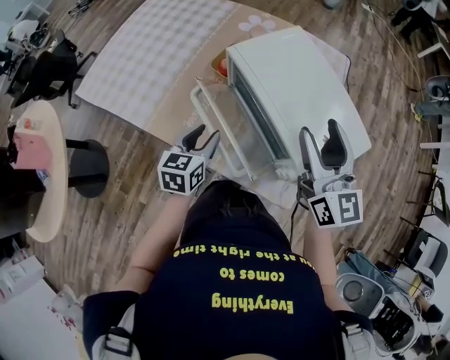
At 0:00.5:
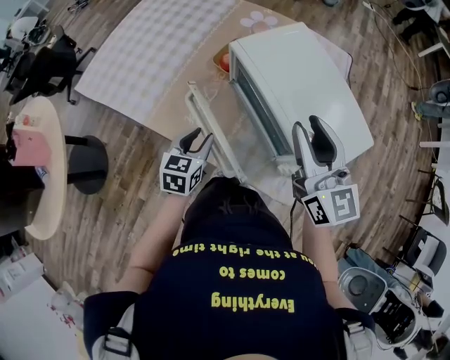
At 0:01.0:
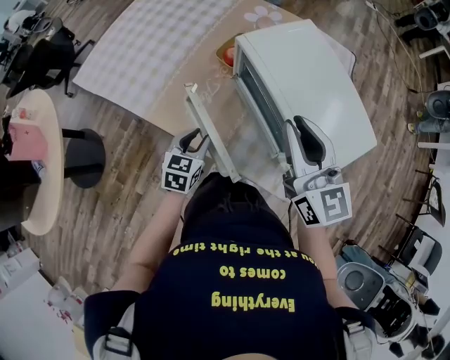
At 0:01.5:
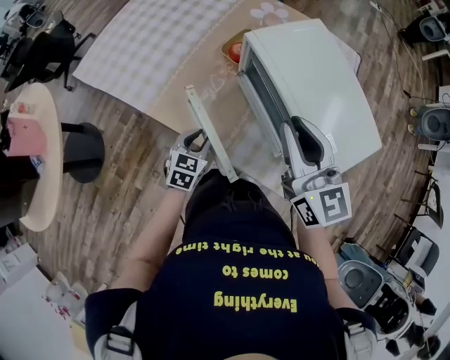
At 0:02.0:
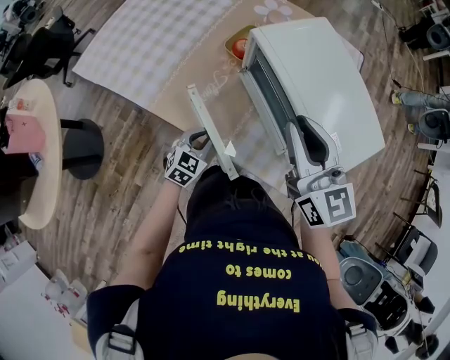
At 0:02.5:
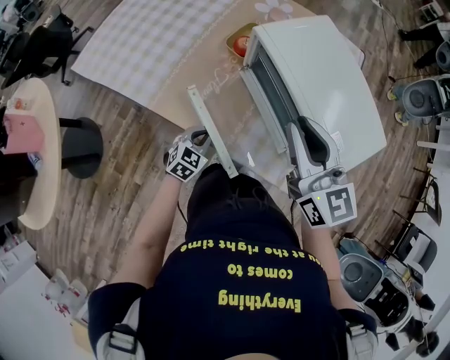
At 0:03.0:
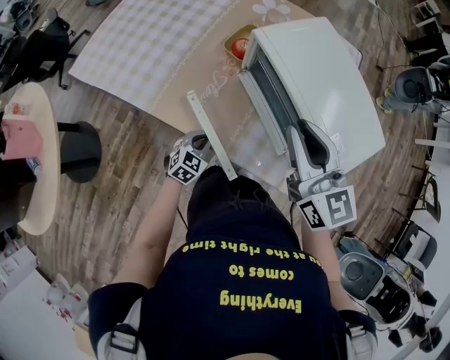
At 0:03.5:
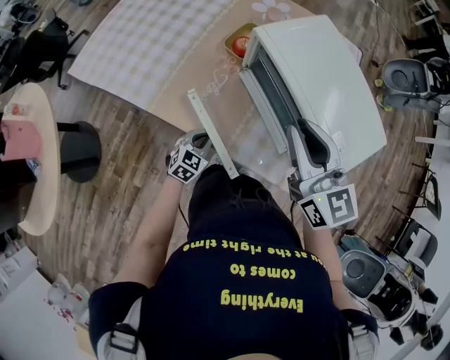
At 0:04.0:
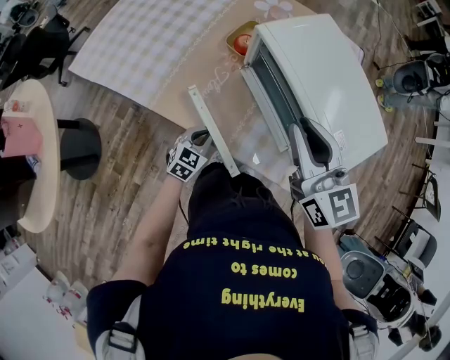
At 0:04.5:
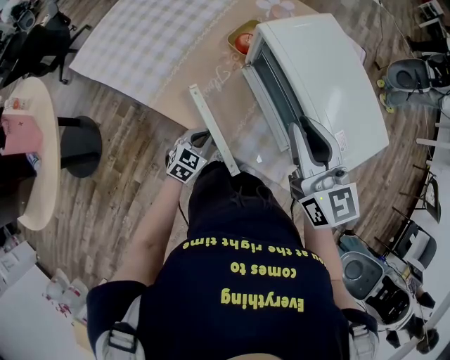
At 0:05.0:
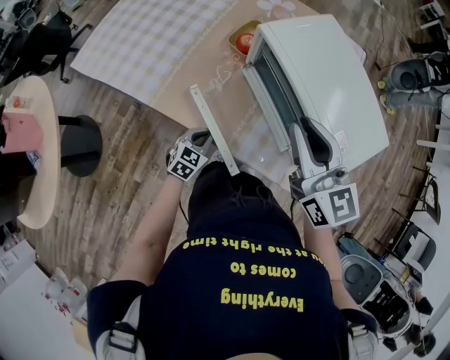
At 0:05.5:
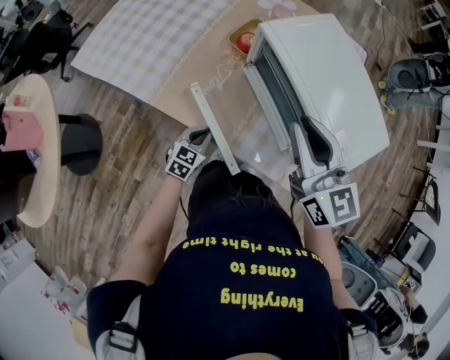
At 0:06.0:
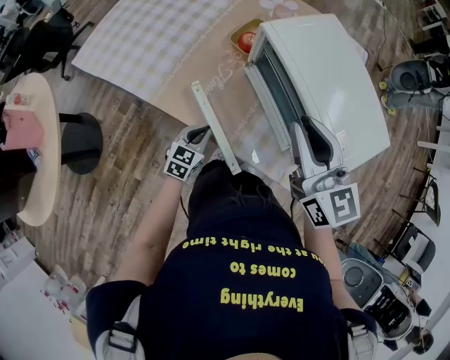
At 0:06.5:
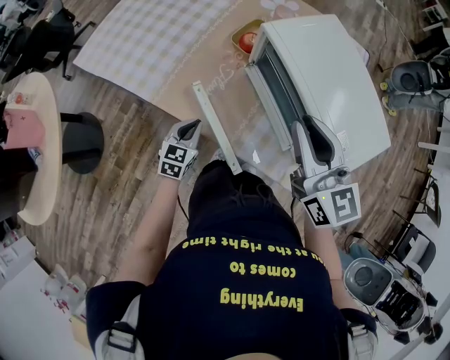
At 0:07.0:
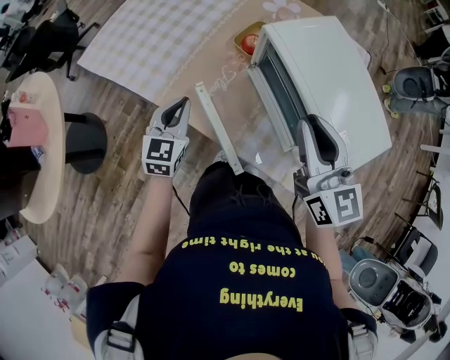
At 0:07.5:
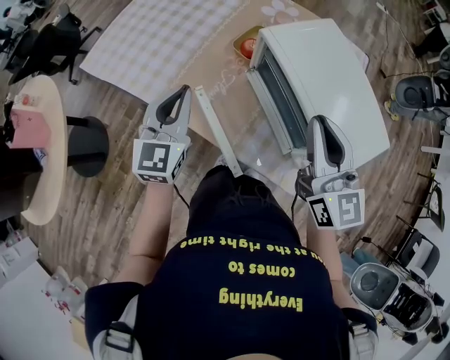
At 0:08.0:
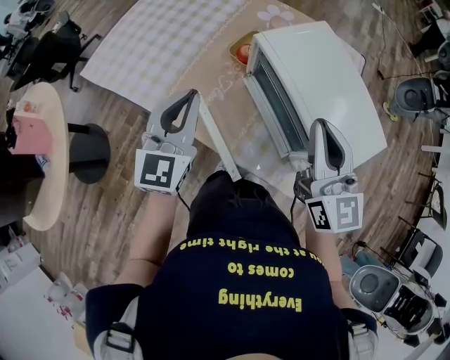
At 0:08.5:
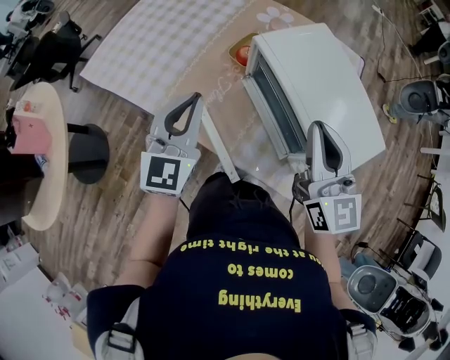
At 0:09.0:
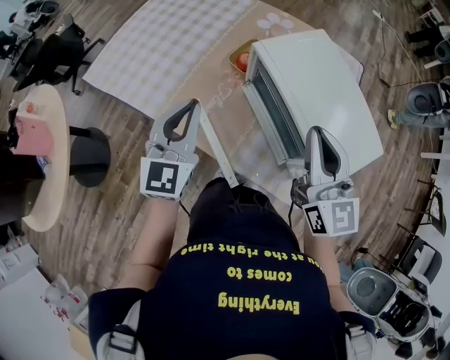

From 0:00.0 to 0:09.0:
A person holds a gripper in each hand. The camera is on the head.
From 0:00.0 to 0:02.0: The right gripper is displaced to the left by roughly 10 cm, and closes. The left gripper moves downward, roughly 15 cm, changes its angle by about 30 degrees, and closes up.
From 0:02.0 to 0:04.5: The grippers stay close to where they were, moving slightly.
From 0:04.5 to 0:07.0: The left gripper shifts approximately 20 cm upward and to the left, and swivels roughly 30 degrees.
From 0:07.0 to 0:09.0: The left gripper goes about 15 cm upward and to the right.

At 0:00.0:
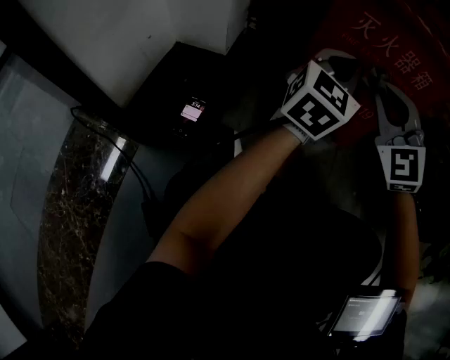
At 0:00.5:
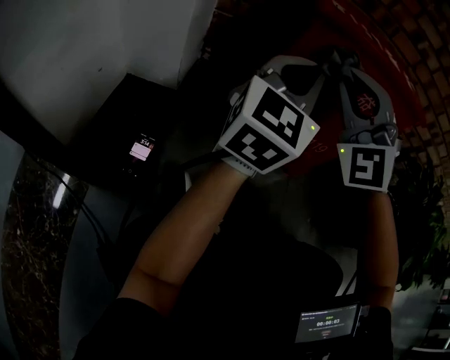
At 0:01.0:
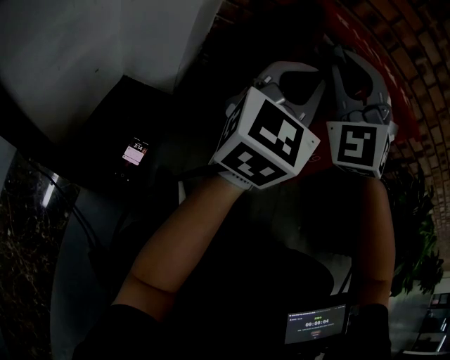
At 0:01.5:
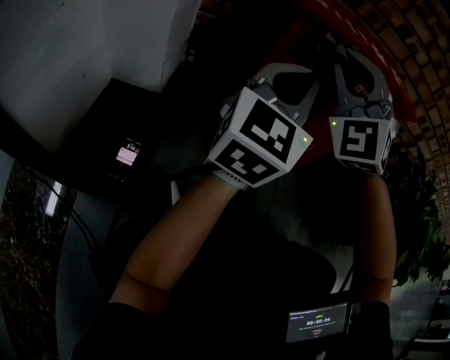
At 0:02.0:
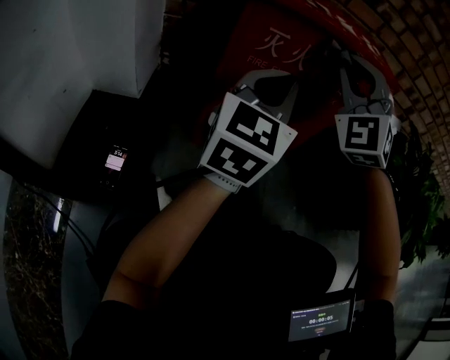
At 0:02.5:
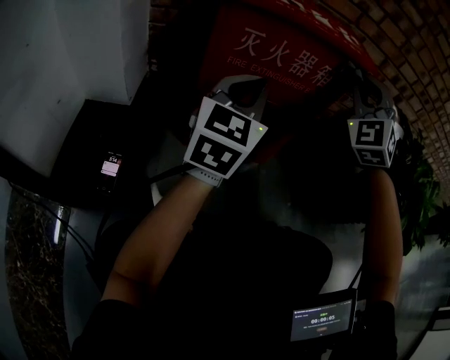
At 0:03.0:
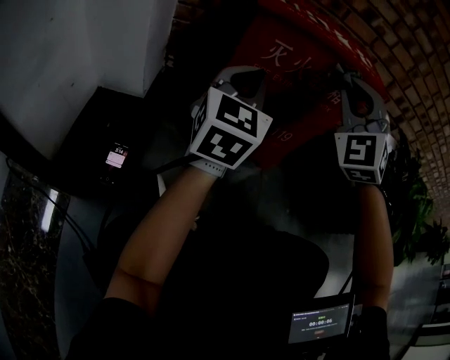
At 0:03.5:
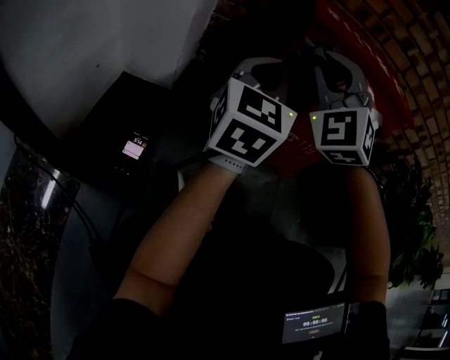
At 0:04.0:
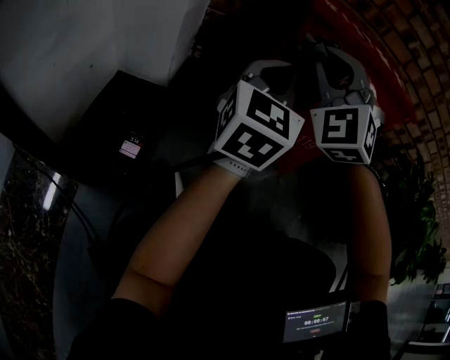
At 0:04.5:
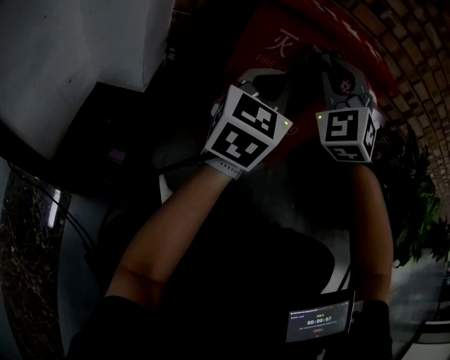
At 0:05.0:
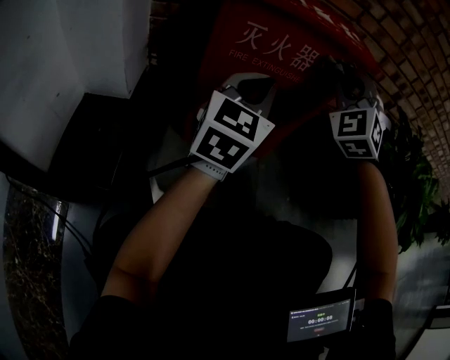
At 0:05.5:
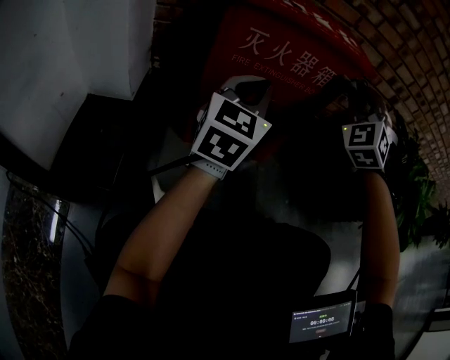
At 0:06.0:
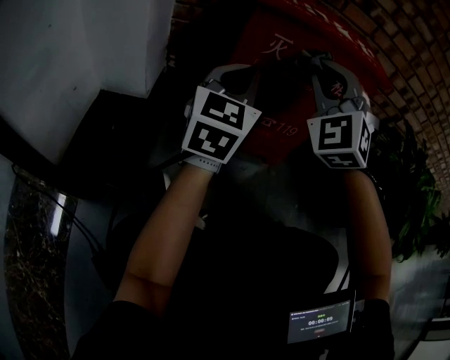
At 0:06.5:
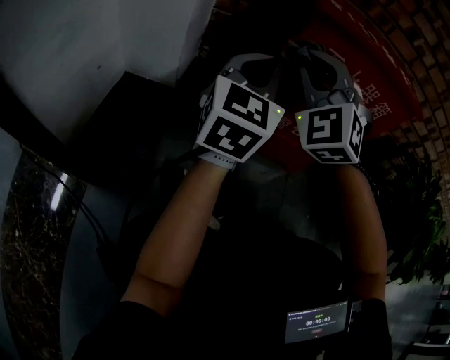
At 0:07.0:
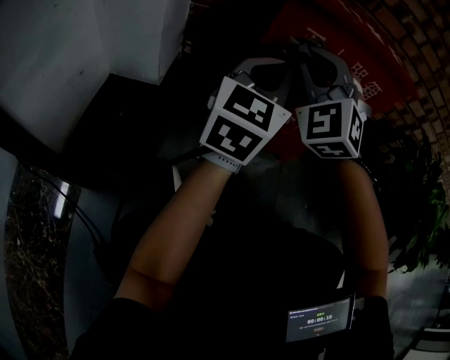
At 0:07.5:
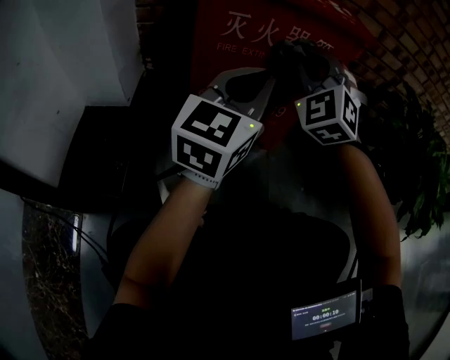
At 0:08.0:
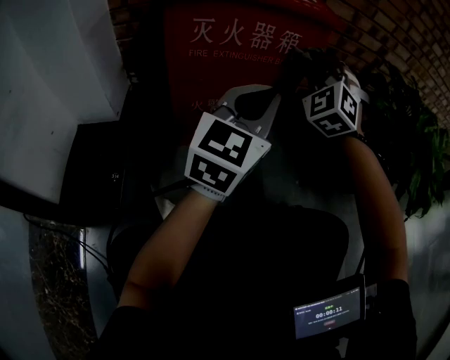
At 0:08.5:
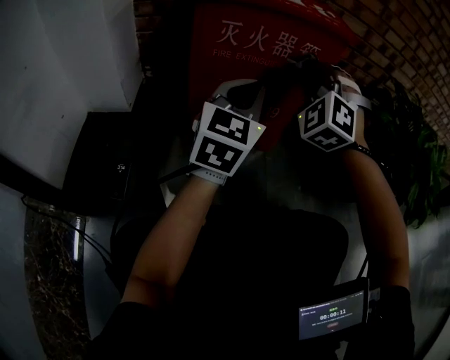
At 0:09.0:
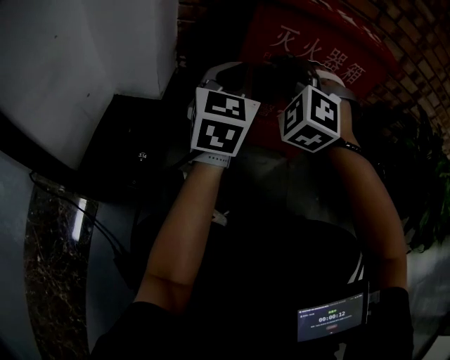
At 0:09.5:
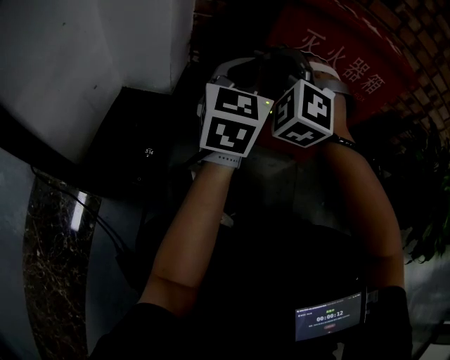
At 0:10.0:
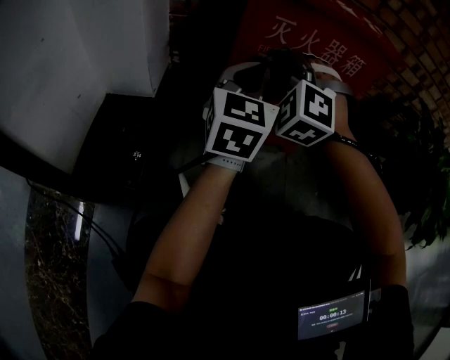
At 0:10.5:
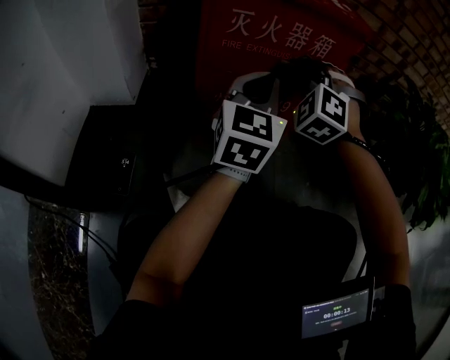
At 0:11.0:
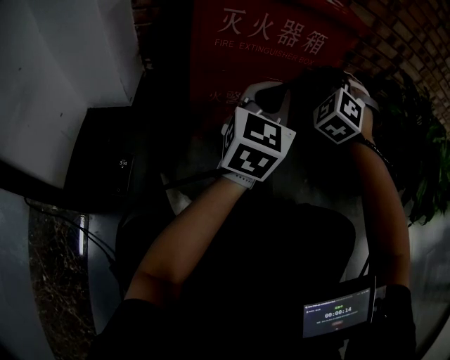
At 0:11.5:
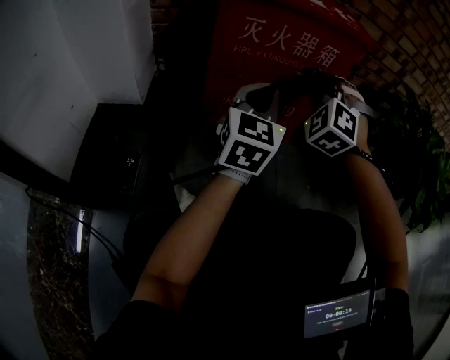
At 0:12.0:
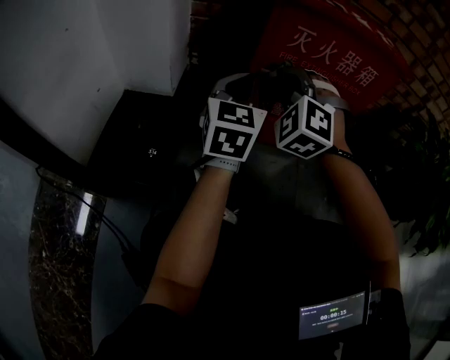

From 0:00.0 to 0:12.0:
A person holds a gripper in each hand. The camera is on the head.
From 0:02.0 to 0:04.0: The left gripper ends up approximately 10 cm from where it was.
From 0:06.0 to 0:08.0: The left gripper shifts by some 20 cm, and rotates about 20 degrees.
From 0:08.0 to 0:10.0: The left gripper ends up approximately 15 cm from where it was, and swivels some 20 degrees.

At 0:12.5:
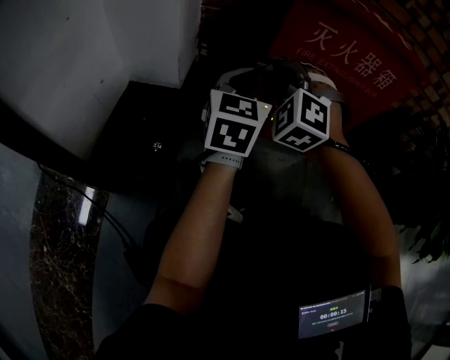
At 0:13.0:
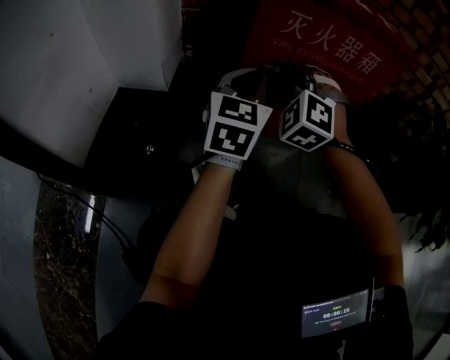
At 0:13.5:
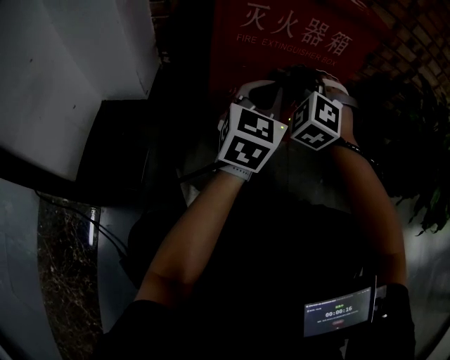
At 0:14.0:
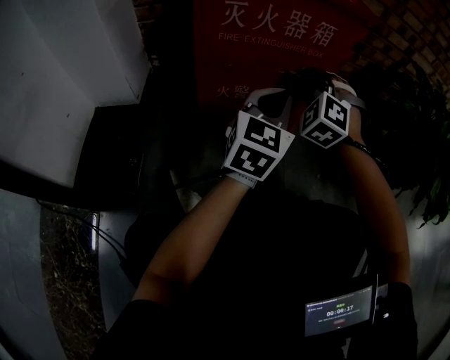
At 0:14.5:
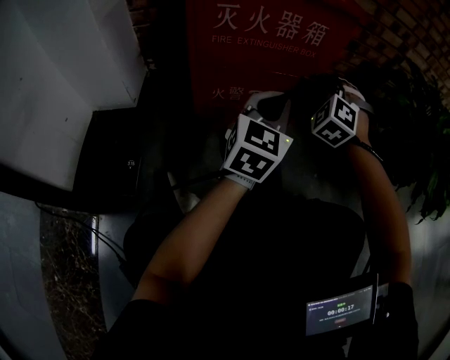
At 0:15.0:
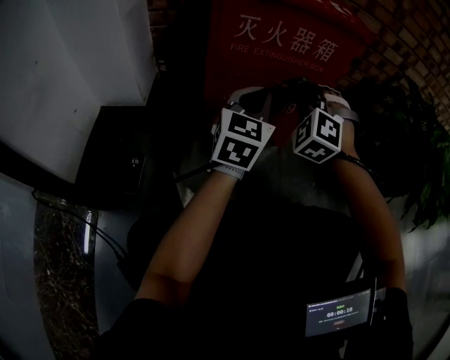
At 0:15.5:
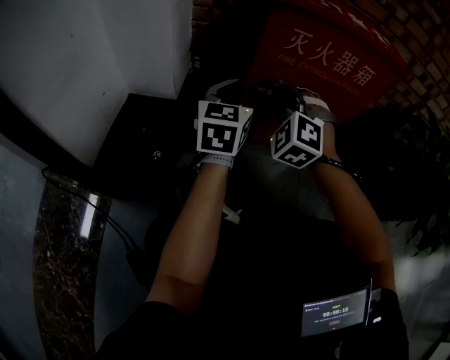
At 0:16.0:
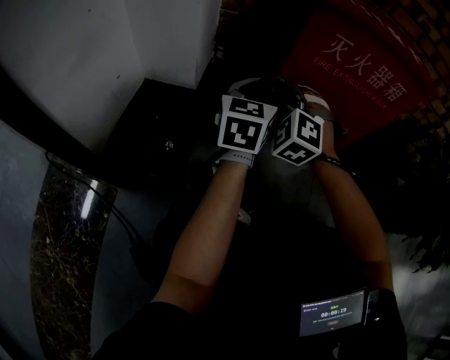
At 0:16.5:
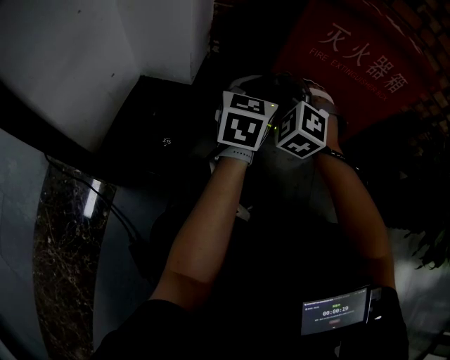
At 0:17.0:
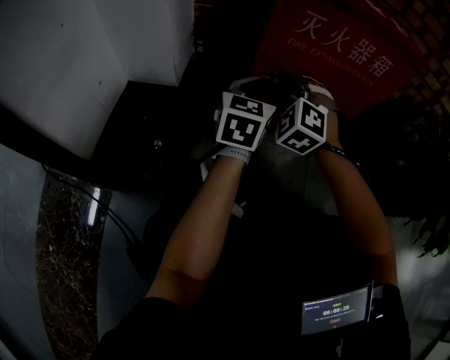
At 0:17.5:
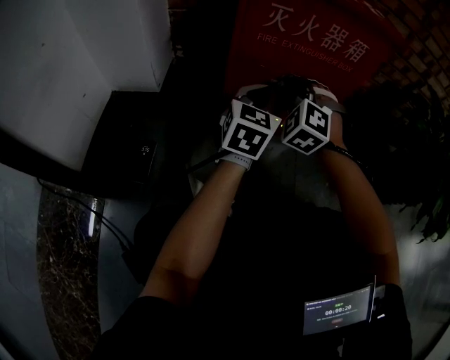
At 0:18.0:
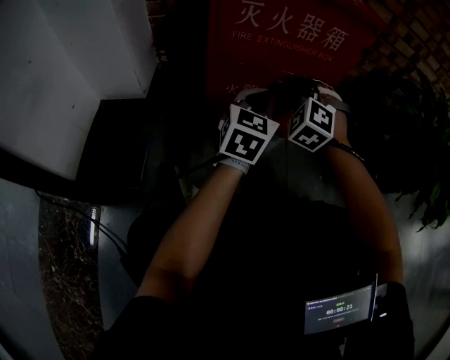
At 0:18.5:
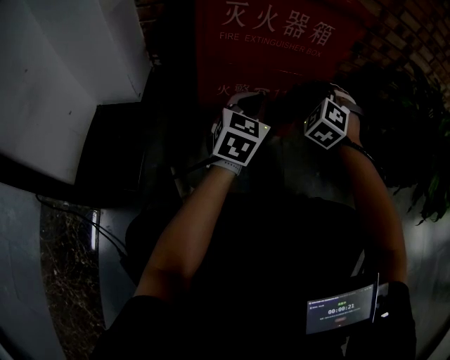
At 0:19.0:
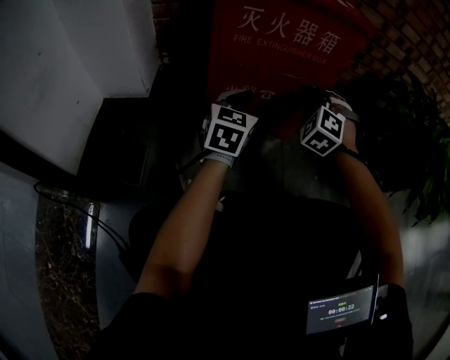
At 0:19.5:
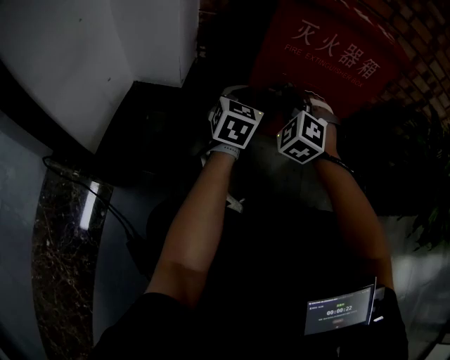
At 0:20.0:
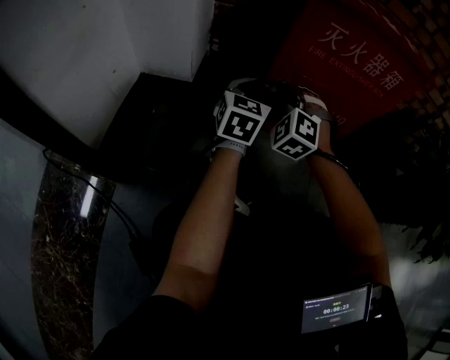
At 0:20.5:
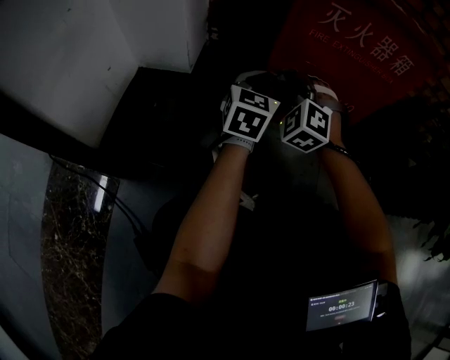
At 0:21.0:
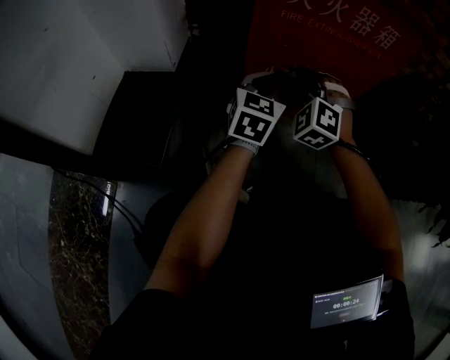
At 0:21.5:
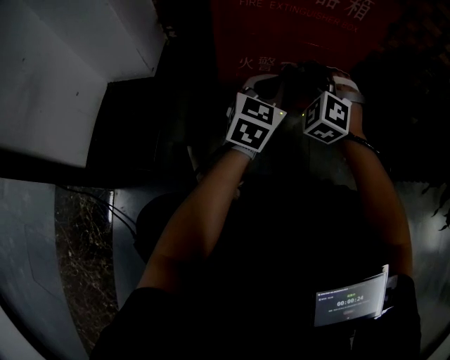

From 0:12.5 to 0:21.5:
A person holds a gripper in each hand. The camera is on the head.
From 0:12.5 to 0:14.5: The left gripper ends up approximately 25 cm from where it was, and changes its angle by approximately 20 degrees.
From 0:14.5 to 0:17.0: The left gripper shifts by about 20 cm, and rotates approximately 20 degrees.
From 0:19.5 to 0:21.5: The left gripper changes place by approximately 15 cm.
